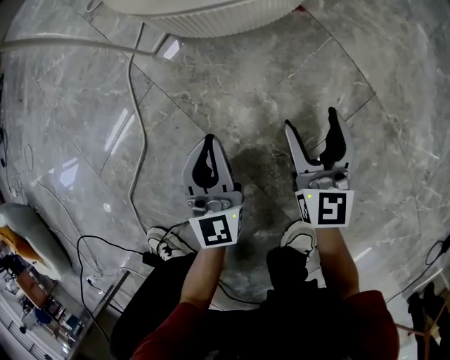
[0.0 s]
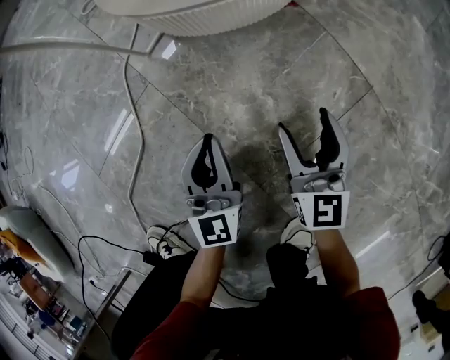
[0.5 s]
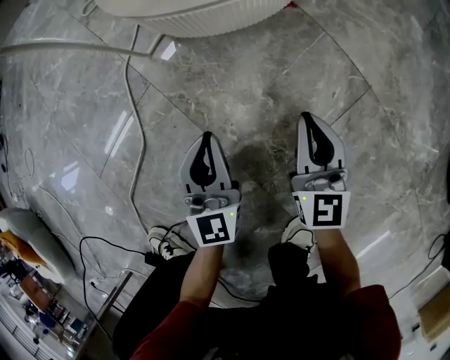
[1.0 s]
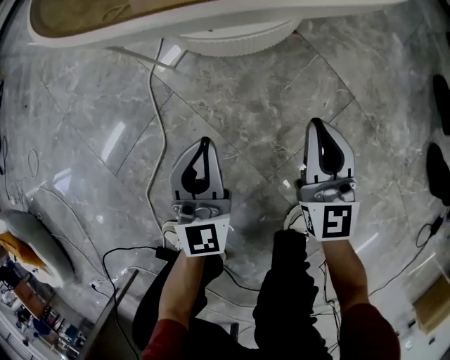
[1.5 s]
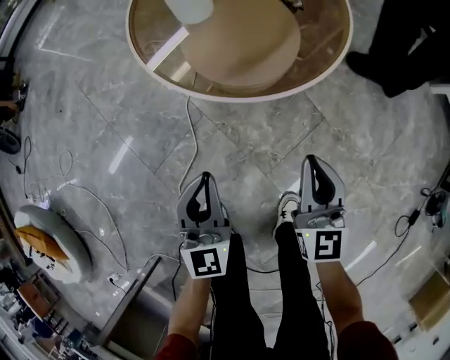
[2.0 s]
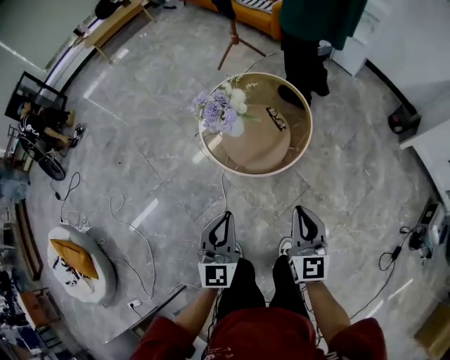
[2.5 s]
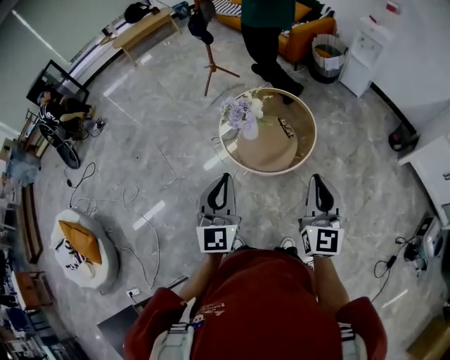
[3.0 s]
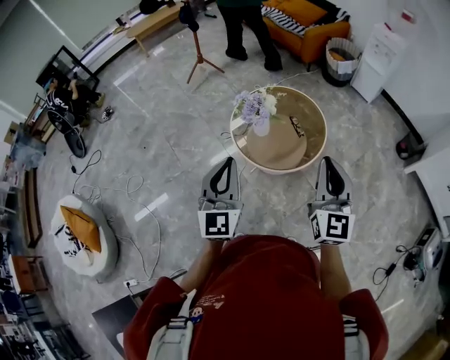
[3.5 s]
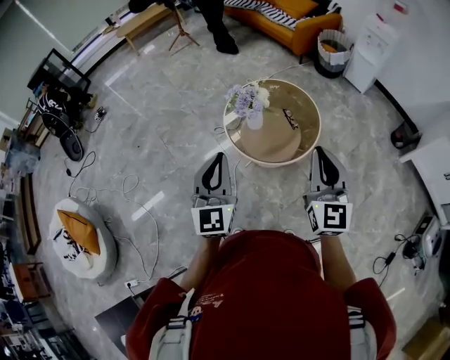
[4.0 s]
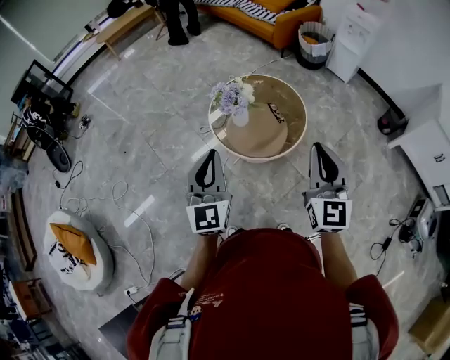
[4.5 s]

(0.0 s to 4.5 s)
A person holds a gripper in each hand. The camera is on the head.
0.0 s - 2.0 s: The grippers both shift upward by some 40 cm. The right gripper closes.
2.0 s - 4.5 s: The grippers both shift upward by about 50 cm.

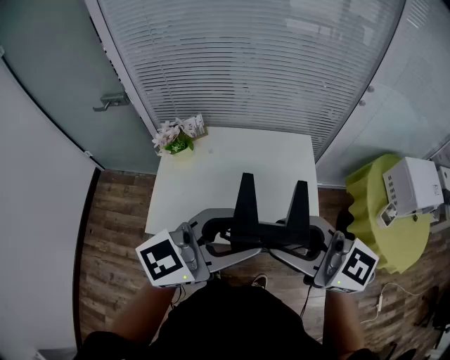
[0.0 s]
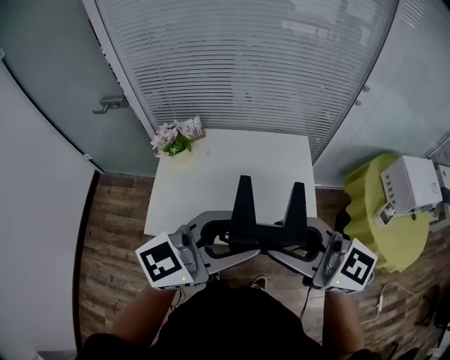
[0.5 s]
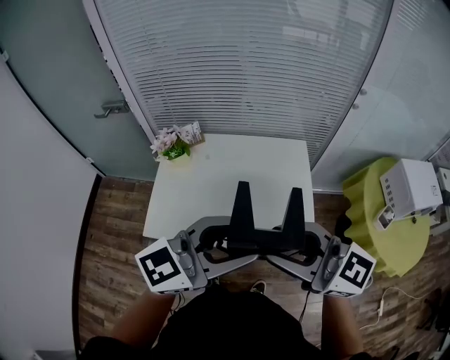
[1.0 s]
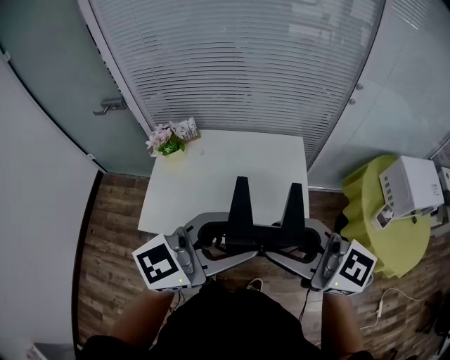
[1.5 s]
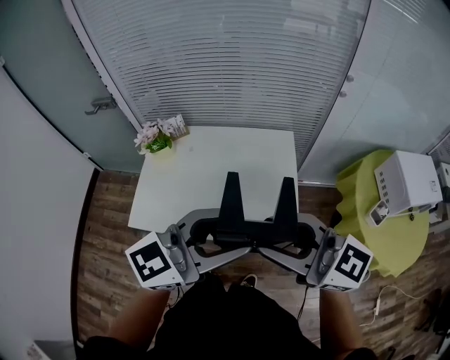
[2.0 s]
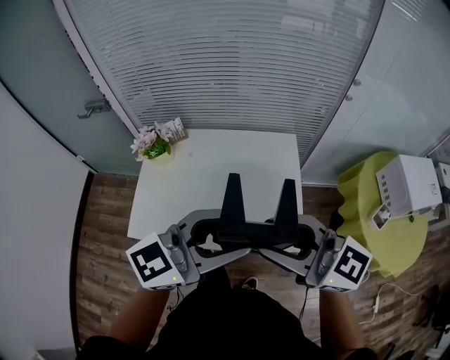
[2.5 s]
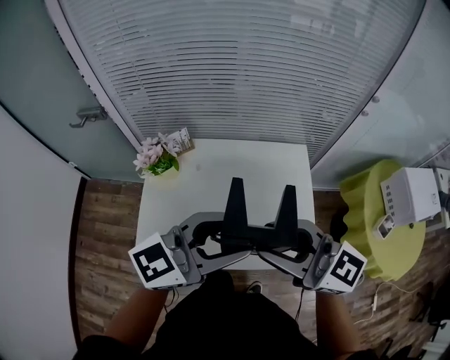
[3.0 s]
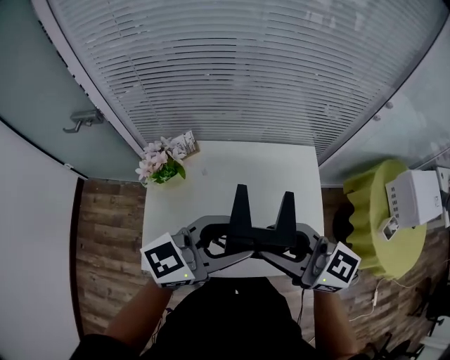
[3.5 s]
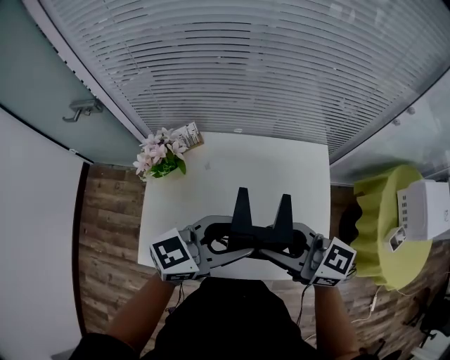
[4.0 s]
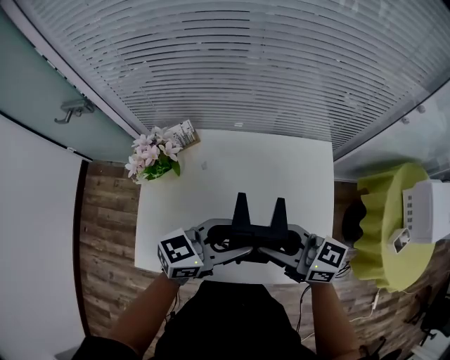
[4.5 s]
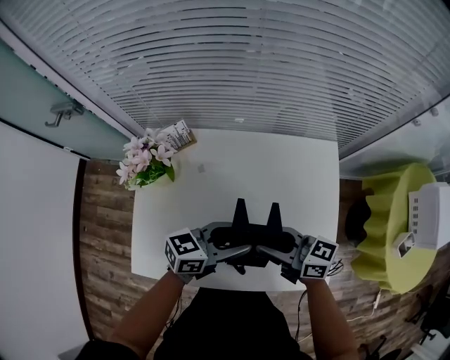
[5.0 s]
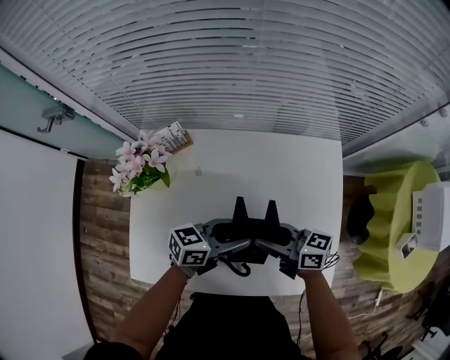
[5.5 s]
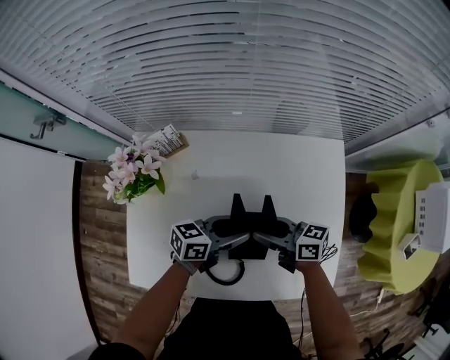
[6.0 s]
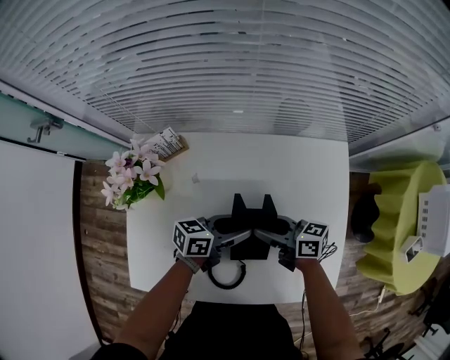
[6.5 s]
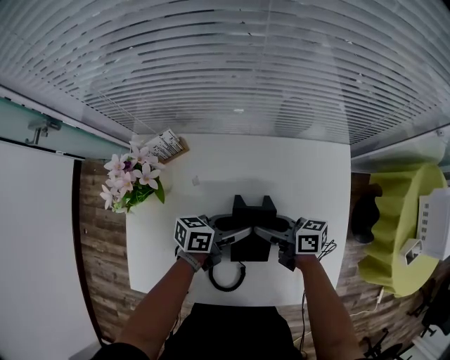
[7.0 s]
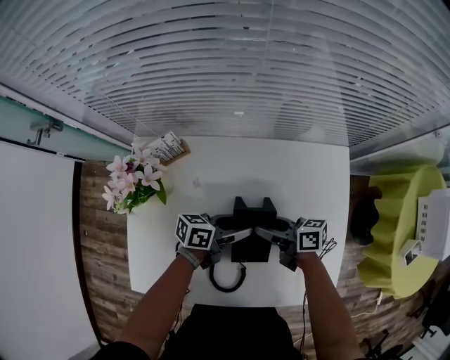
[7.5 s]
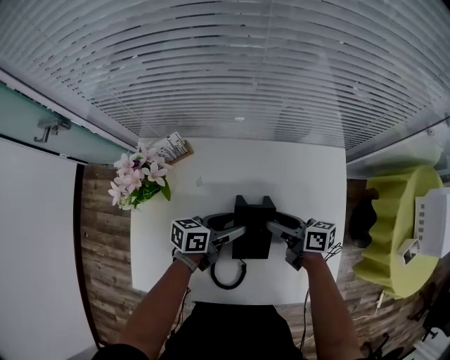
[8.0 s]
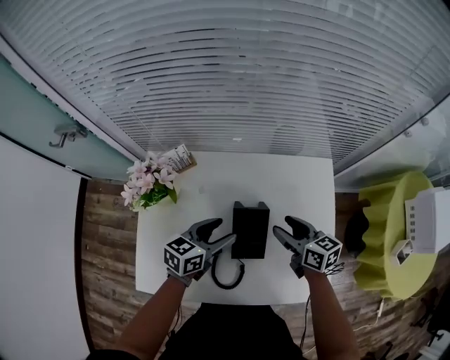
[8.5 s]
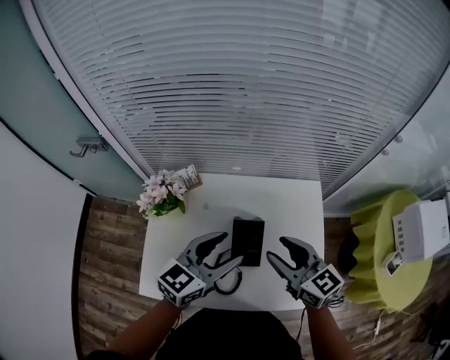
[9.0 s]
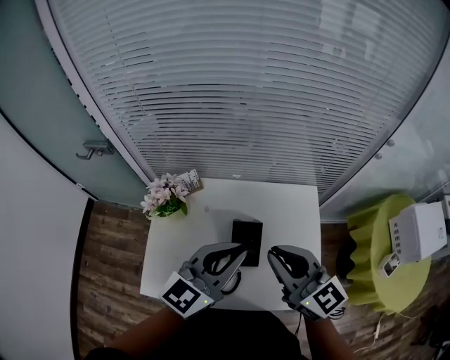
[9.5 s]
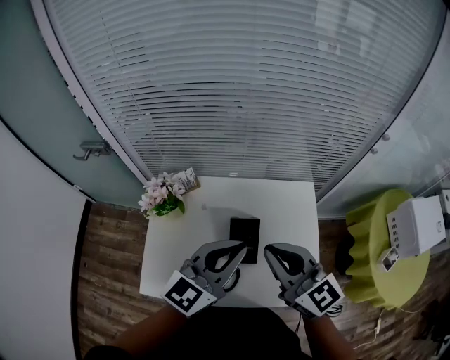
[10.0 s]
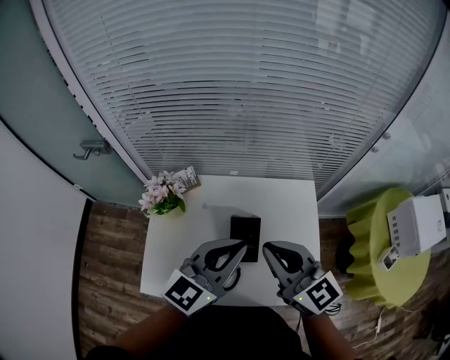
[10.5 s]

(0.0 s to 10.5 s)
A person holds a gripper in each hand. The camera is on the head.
0.0 s - 2.0 s: The left gripper shifts by approximately 10 cm. Meanwhile the right gripper shifts by roughly 10 cm.
2.0 s - 4.0 s: The right gripper shifts by about 30 cm; the left gripper moves about 30 cm.
4.0 s - 6.5 s: The grippers both shift downward by some 30 cm. The left gripper turns by approximately 40 degrees. Meanwhile the right gripper swivels about 40 degrees.
6.5 s - 8.5 s: The left gripper is displaced upward by roughly 10 cm, and rotates approximately 20 degrees; the right gripper changes place by roughly 10 cm, and turns by about 30 degrees.
8.5 s - 10.5 s: The two grippers go approximately 30 cm upward. The left gripper swivels some 40 degrees, and closes, while the right gripper swivels approximately 40 degrees, and closes its fingers.

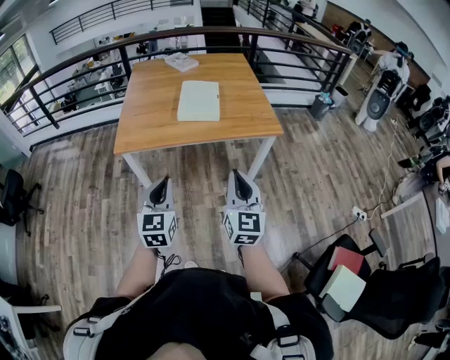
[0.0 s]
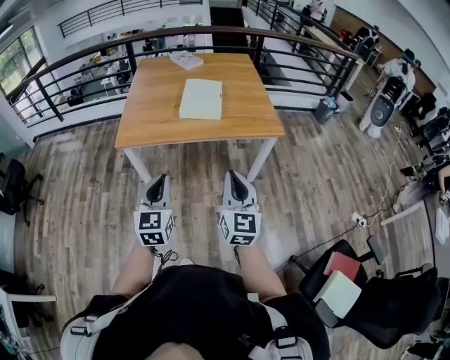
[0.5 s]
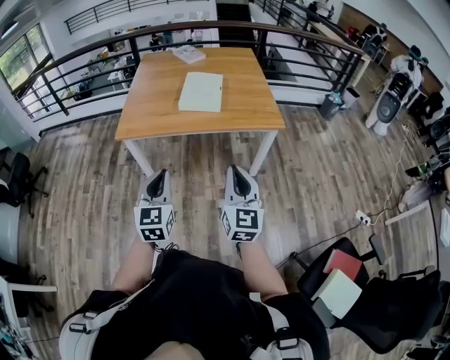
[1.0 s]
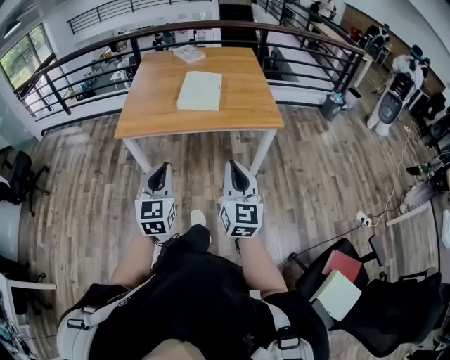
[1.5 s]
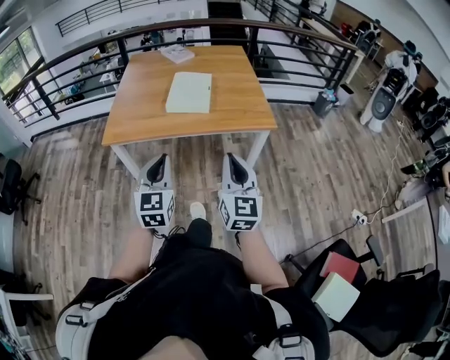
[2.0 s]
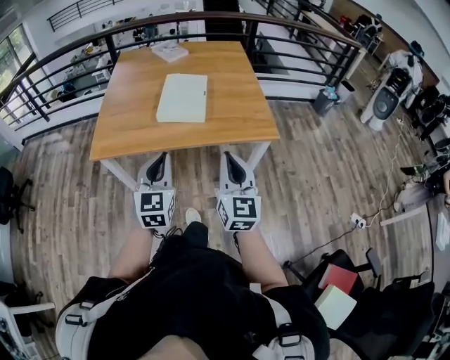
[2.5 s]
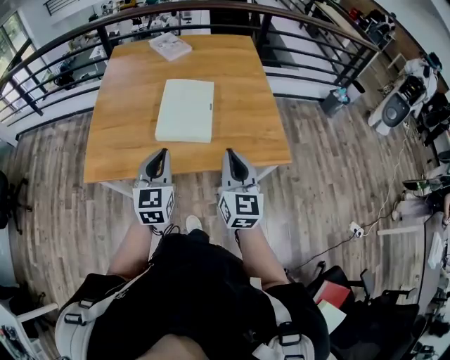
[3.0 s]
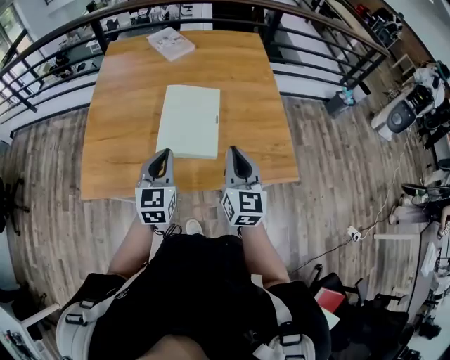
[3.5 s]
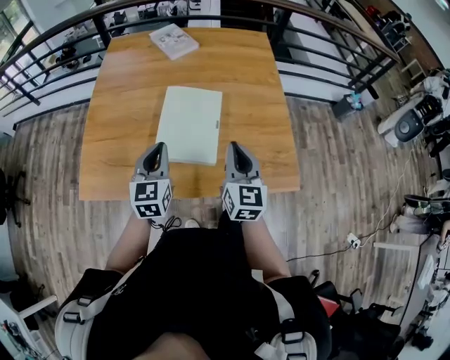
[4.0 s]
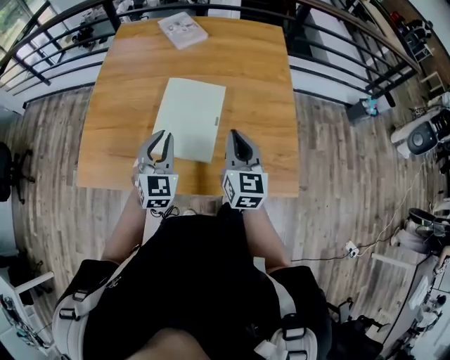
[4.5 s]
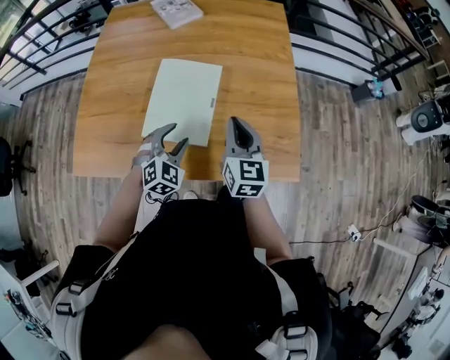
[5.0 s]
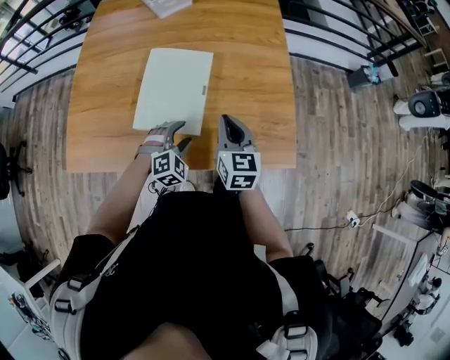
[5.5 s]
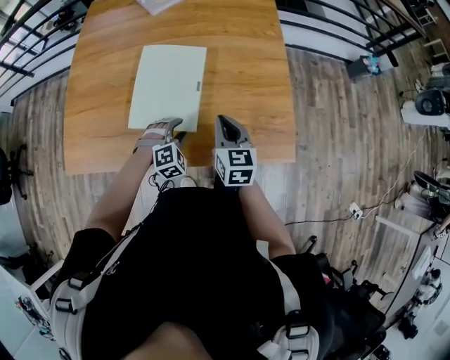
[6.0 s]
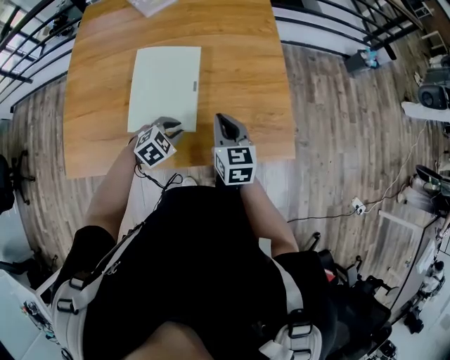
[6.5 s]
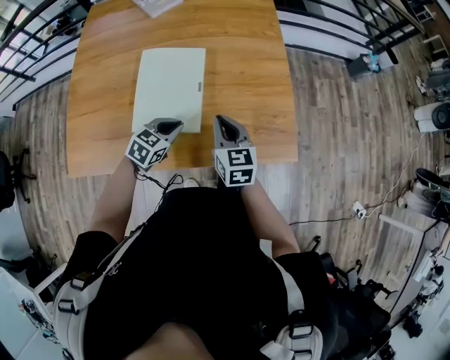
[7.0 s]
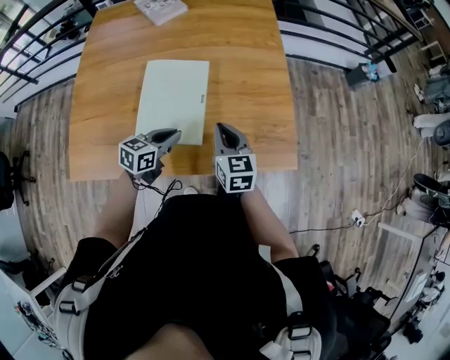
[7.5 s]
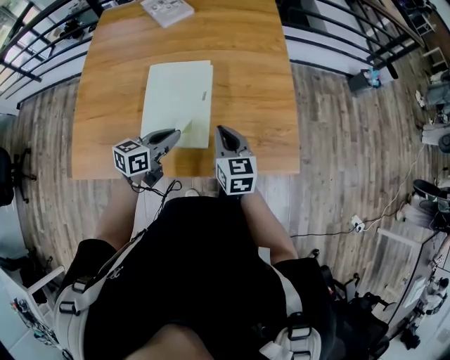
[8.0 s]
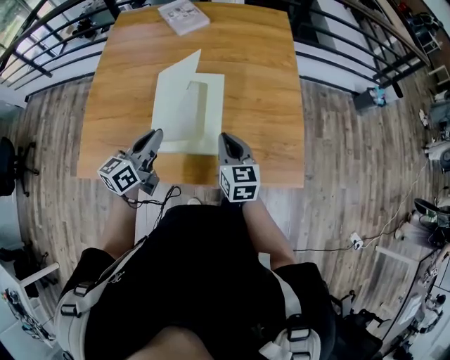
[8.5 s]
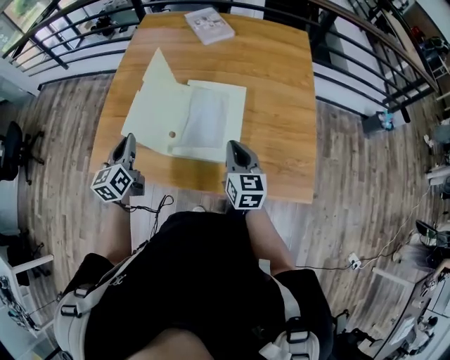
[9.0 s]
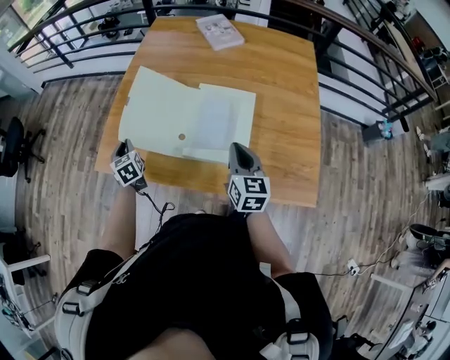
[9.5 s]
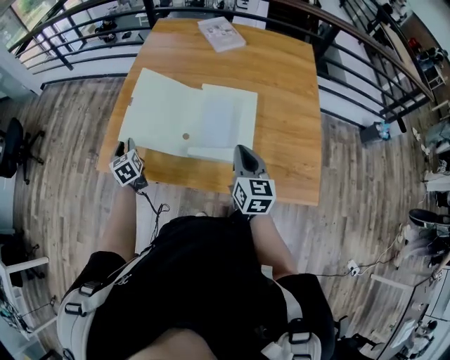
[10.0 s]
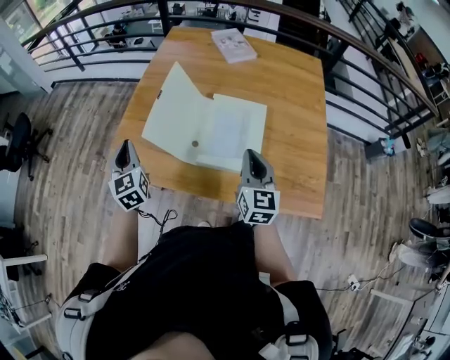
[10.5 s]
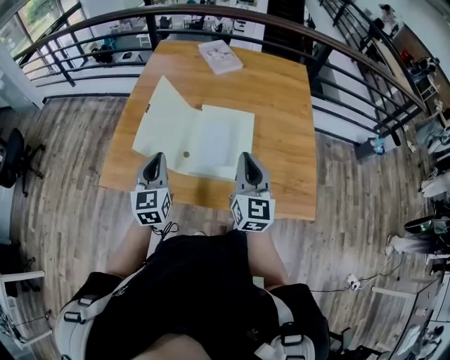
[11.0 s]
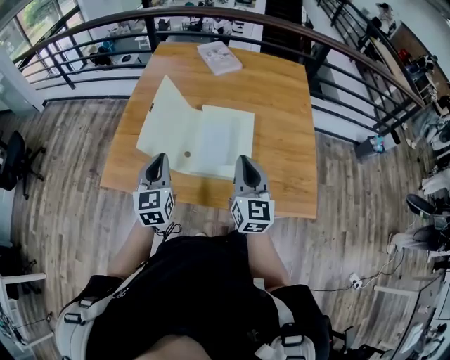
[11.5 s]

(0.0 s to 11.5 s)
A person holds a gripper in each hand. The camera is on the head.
0.0 s - 2.0 s: Both grippers travel together to the right, roughly 5 cm.
2.0 s - 4.0 s: Both grippers are carried forward, approximately 50 cm.
4.0 s - 6.0 s: The left gripper moves downward and to the right, roughly 25 cm, twists about 60 degrees clockwise, seen from behind, and opens its fingers. Meanwhile the right gripper goes roughly 15 cm downward, and changes its angle by about 20 degrees.
6.0 s - 7.5 s: The left gripper goes about 5 cm upward, twists roughly 60 degrees counterclockwise, seen from behind, and closes its fingers.
7.5 s - 9.5 s: The right gripper changes place by approximately 10 cm. The left gripper travels upward and back again, approximately 10 cm each way, and rotates approximately 80 degrees.
9.5 s - 11.5 s: The right gripper moves upward, approximately 10 cm, while the left gripper heads upward, to the right and backward, covering roughly 25 cm, and swivels roughly 30 degrees.
